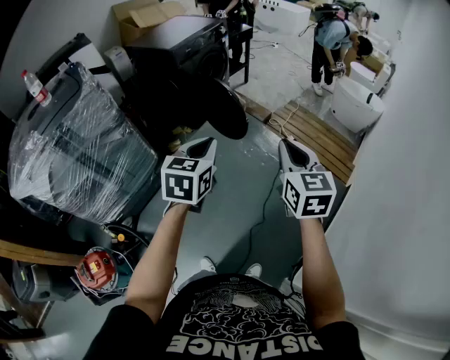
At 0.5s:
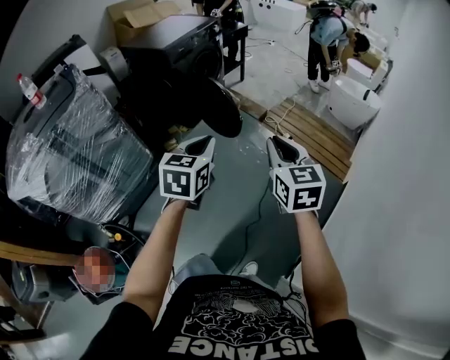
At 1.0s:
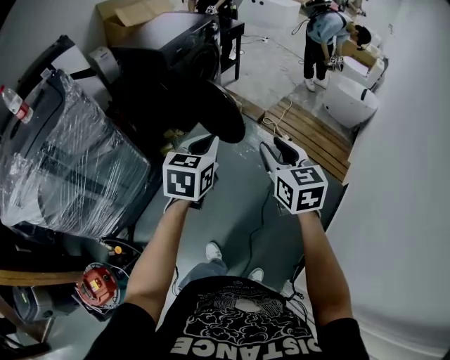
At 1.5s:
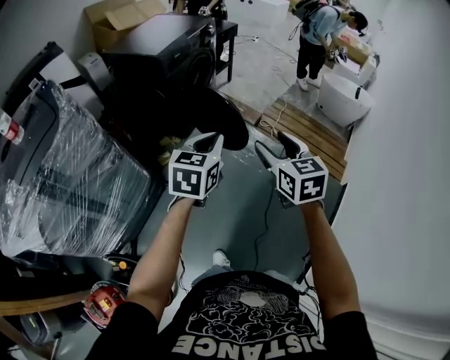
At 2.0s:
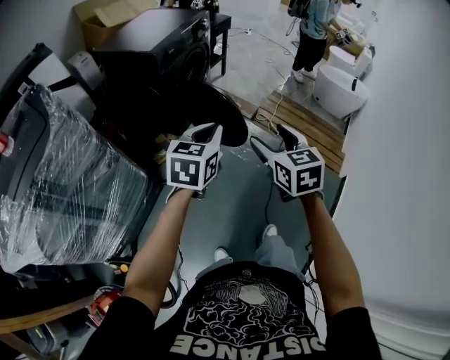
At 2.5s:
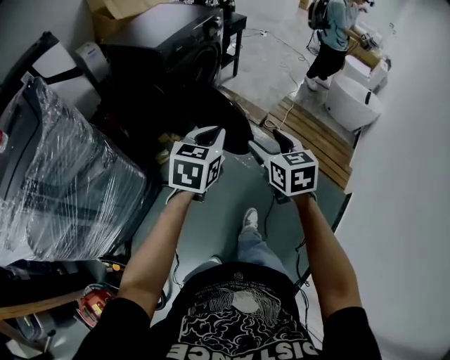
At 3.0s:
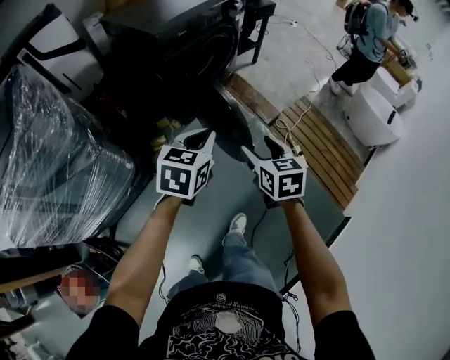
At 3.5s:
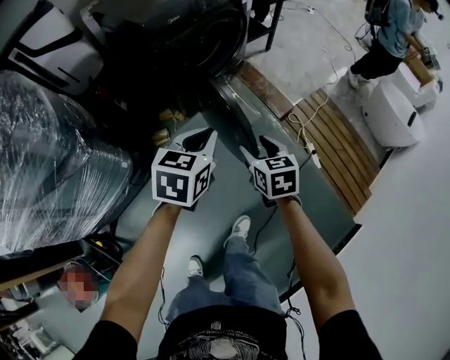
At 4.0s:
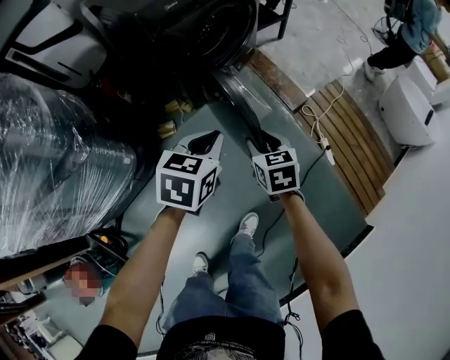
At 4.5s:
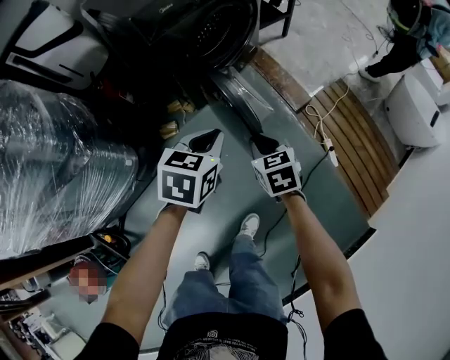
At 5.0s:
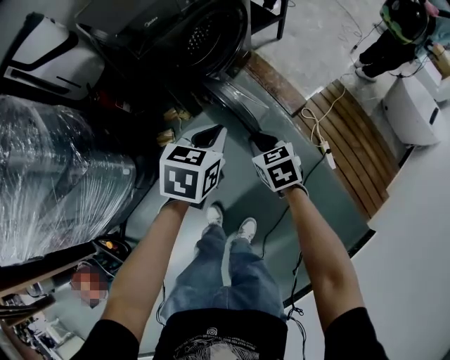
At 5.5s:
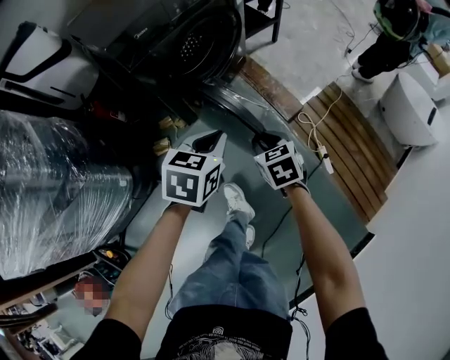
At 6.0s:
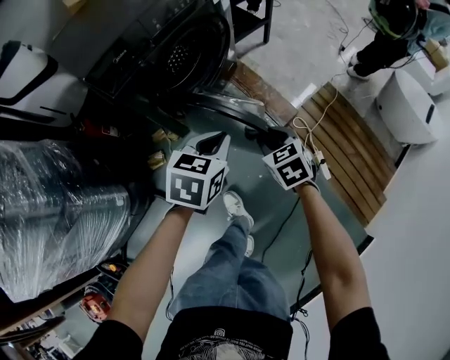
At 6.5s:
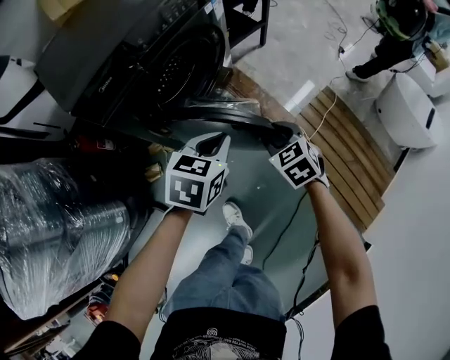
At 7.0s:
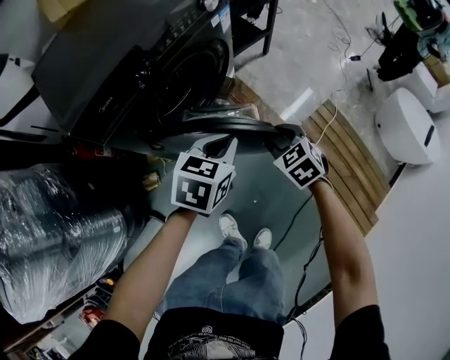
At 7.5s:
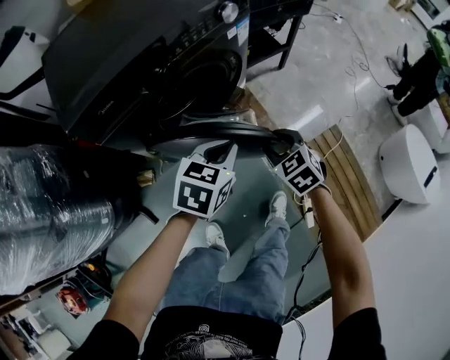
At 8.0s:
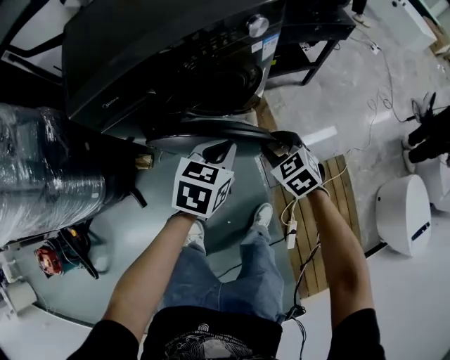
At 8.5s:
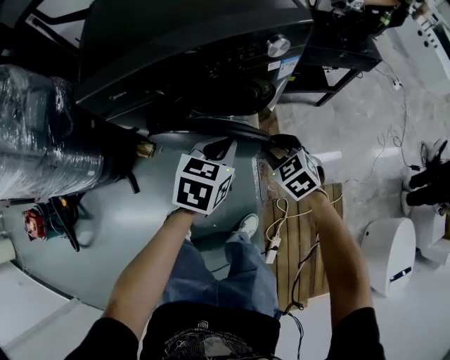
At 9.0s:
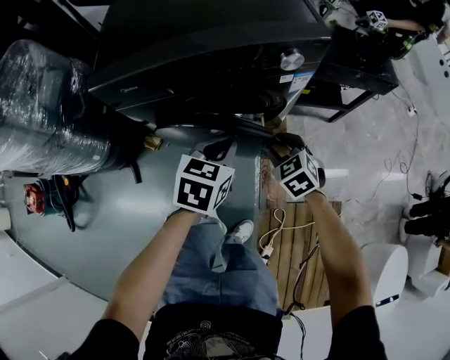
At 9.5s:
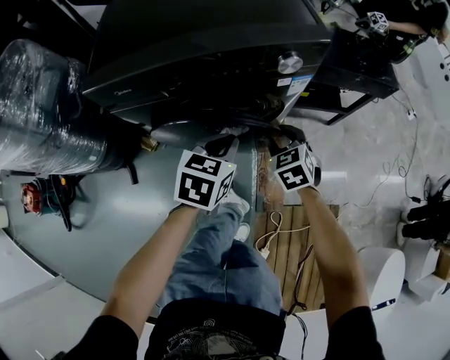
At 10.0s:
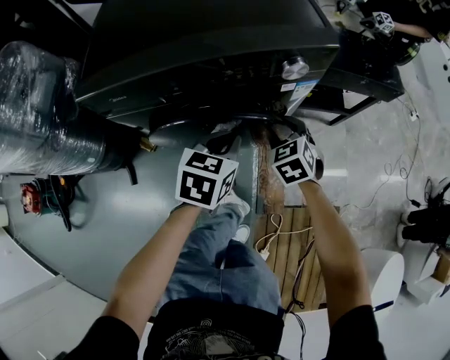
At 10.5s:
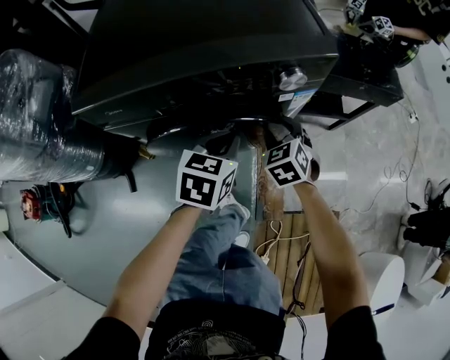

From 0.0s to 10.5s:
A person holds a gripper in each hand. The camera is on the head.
From 0.0s to 2.0s: Both grippers travel together forward and to the left, some 20 cm. The right gripper opens.
From 2.0s to 4.0s: The right gripper shifts roughly 40 cm downward and forward, rotates some 20 degrees, and closes up, while the left gripper goes some 30 cm forward and downward, and turns by about 20 degrees.
From 4.0s to 6.5s: The two grippers go approximately 25 cm forward and to the right. The right gripper turns by some 20 degrees.
From 6.5s to 8.5s: The left gripper changes place by some 20 cm, and rotates some 40 degrees; the right gripper shifts by approximately 25 cm, and turns by about 40 degrees.
From 8.5s to 10.5s: The left gripper travels forward by about 10 cm. The right gripper travels forward by roughly 15 cm.

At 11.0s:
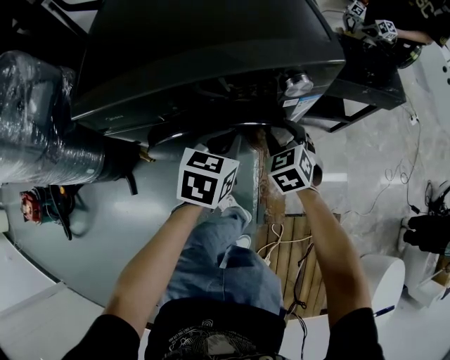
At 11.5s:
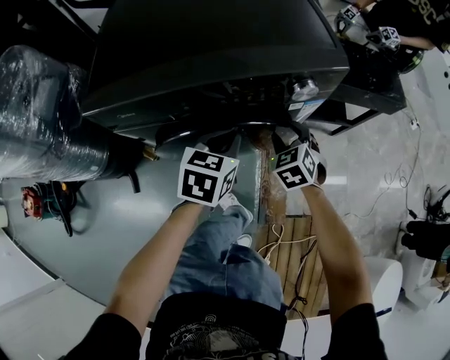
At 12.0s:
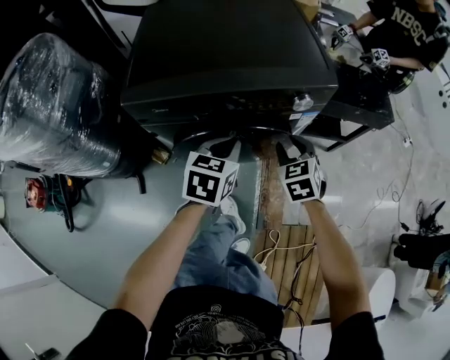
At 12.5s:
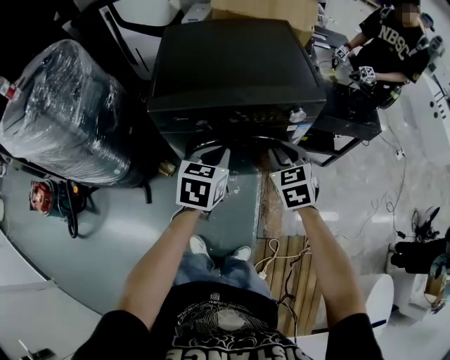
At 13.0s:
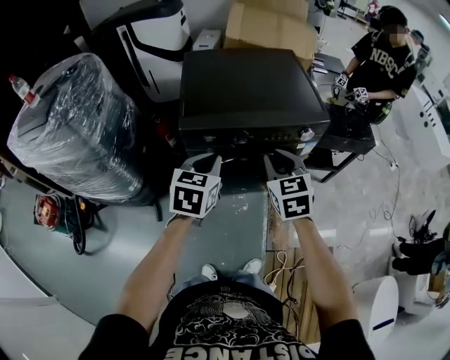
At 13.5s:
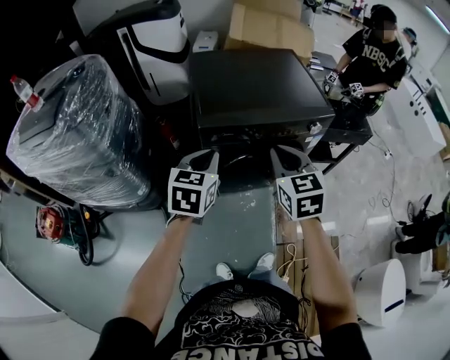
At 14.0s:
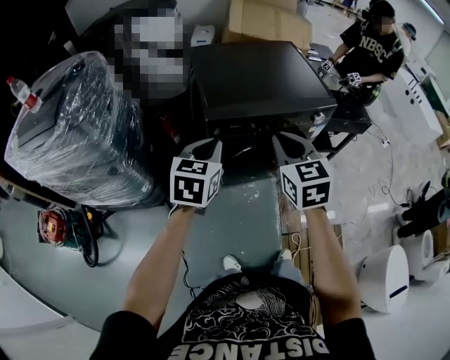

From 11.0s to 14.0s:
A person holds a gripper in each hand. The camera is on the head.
From 11.0s to 12.5s: The left gripper goes approximately 20 cm upward, backward and to the left. Meanwhile the right gripper goes some 25 cm upward and backward.
From 12.5s to 14.0s: The left gripper shifts some 25 cm to the left and upward. The right gripper travels to the left, upward and backward by roughly 30 cm.

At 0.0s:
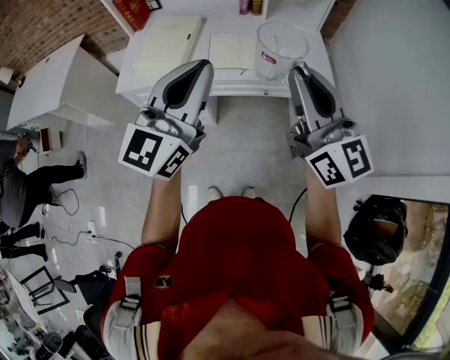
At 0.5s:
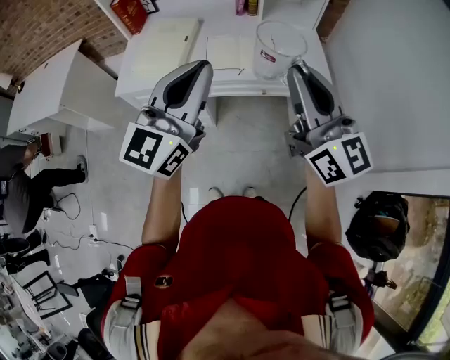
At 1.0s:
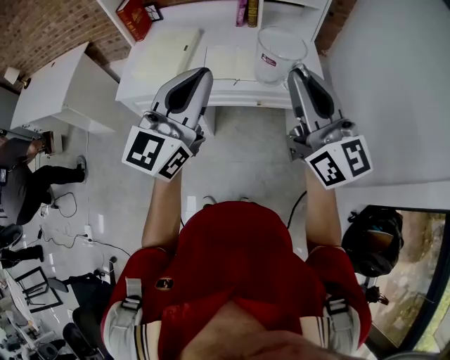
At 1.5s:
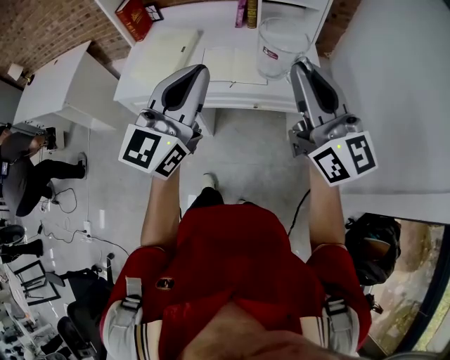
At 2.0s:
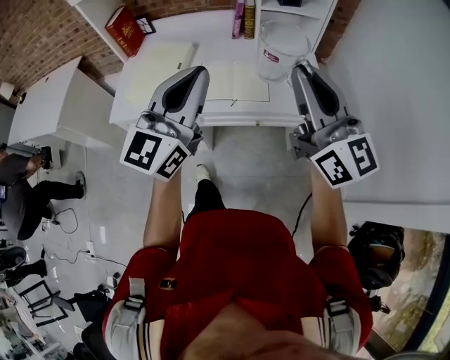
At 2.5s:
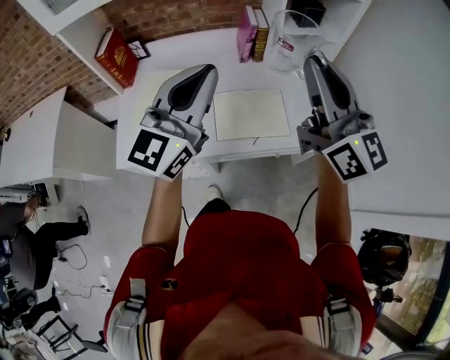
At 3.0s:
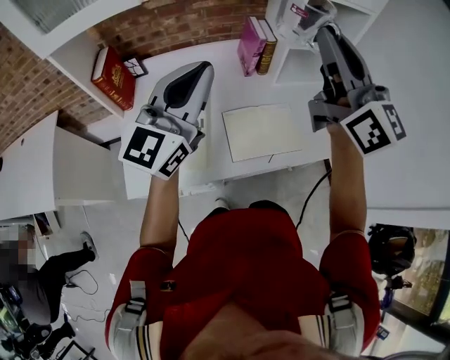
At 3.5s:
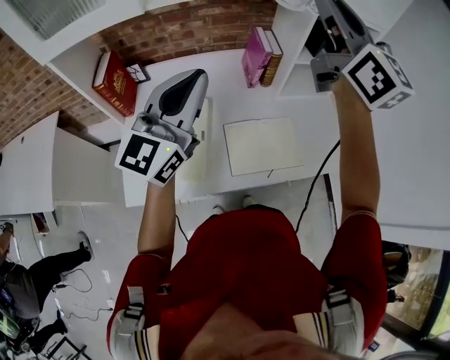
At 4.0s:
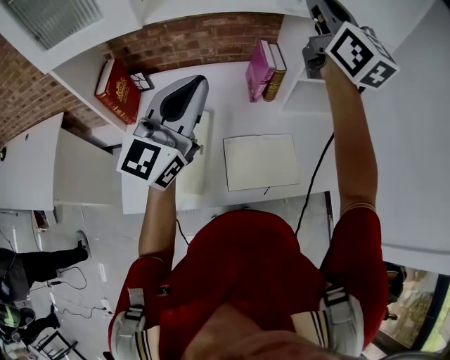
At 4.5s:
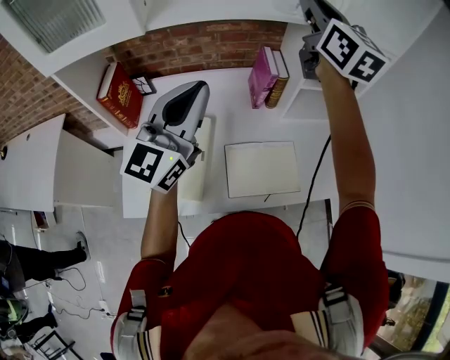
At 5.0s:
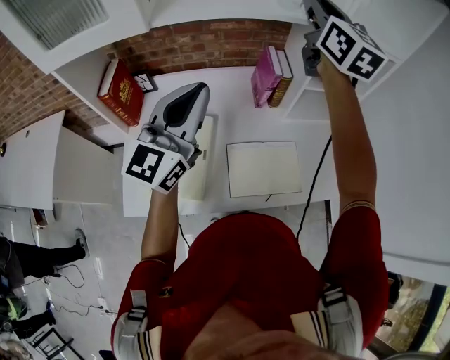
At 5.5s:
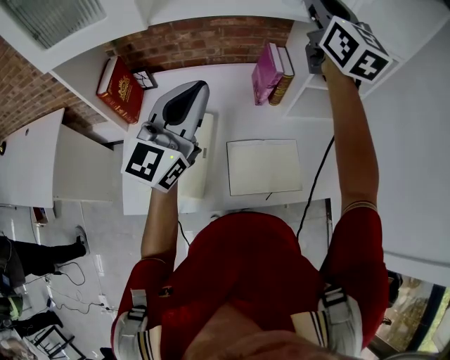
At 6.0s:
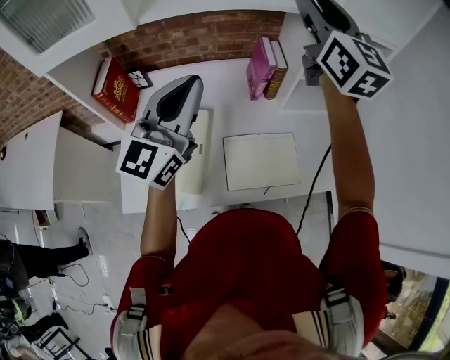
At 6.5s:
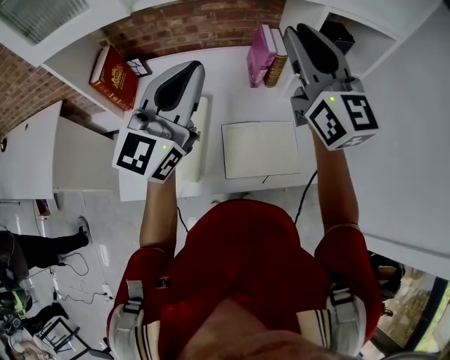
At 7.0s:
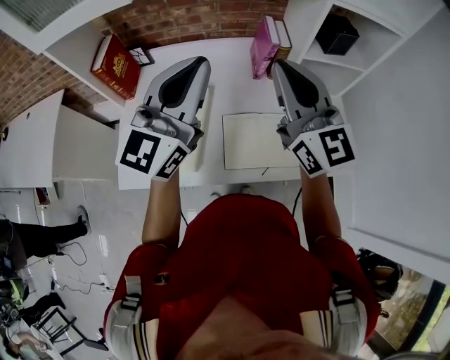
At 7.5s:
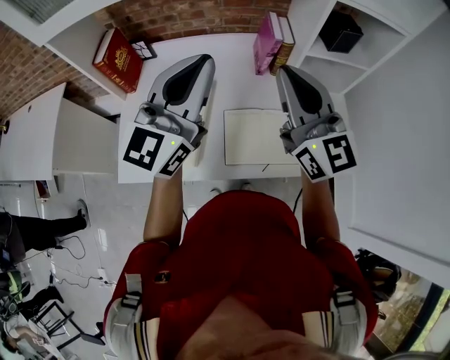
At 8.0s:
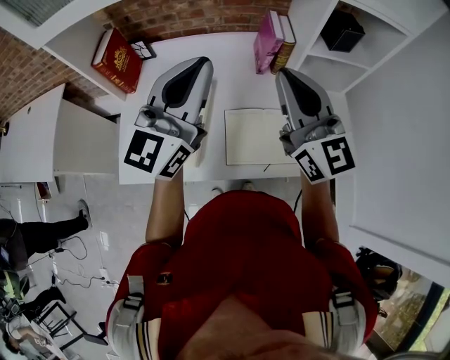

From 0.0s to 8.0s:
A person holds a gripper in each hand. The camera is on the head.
From 0.0s to 2.0s: The grippers both shift forward by some 10 cm.
From 2.0s to 4.0s: Both grippers travel together forward and to the left, some 40 cm.
From 4.0s to 6.0s: The right gripper opens up.
From 6.0s to 8.0s: The right gripper is displaced backward and downward by about 20 cm, and closes its fingers.

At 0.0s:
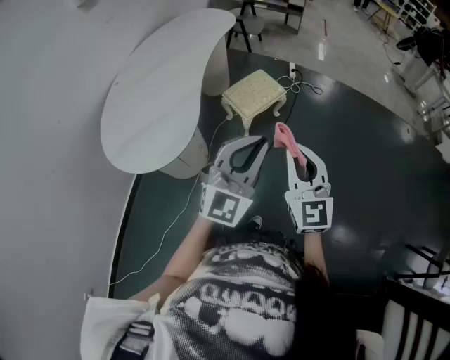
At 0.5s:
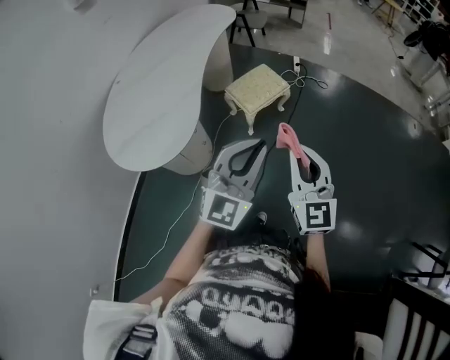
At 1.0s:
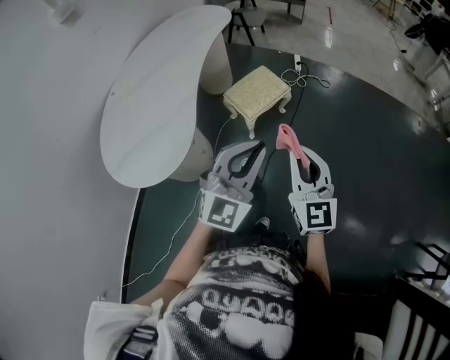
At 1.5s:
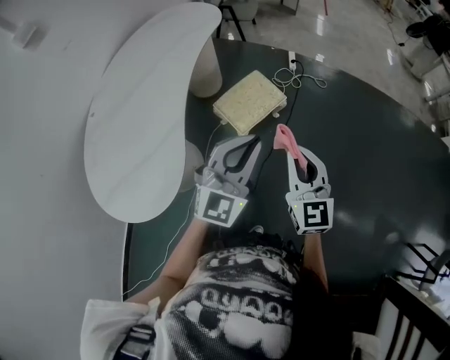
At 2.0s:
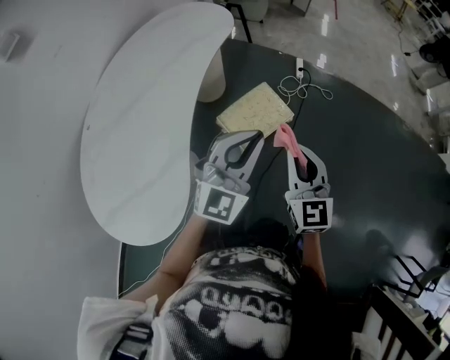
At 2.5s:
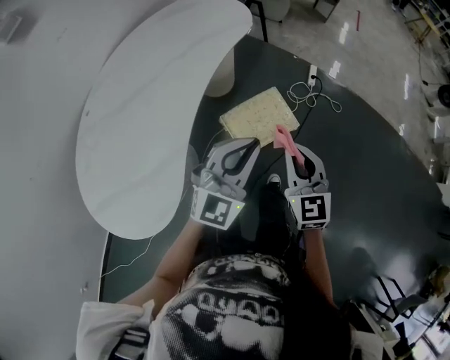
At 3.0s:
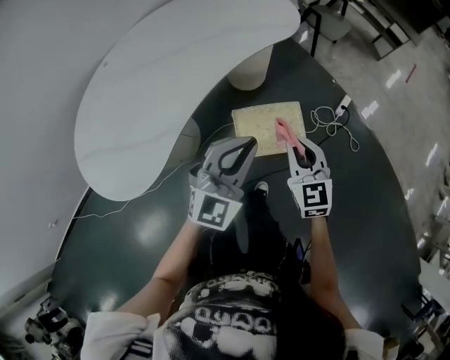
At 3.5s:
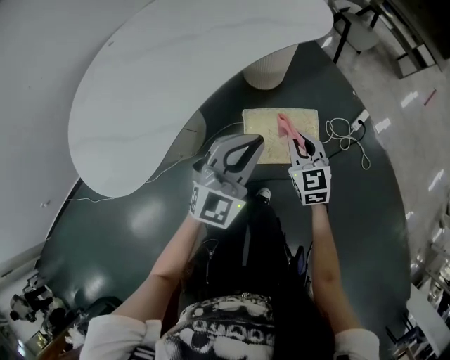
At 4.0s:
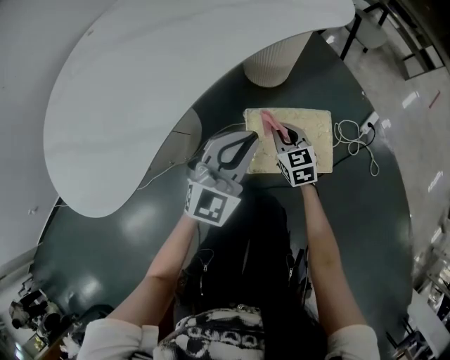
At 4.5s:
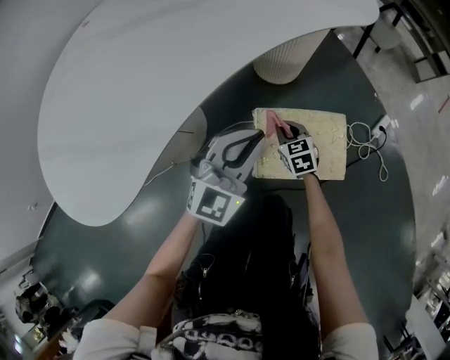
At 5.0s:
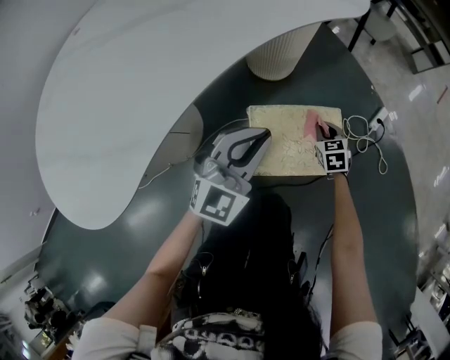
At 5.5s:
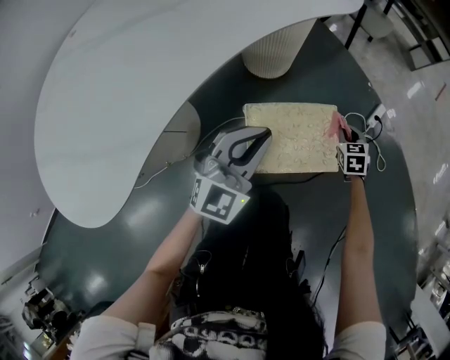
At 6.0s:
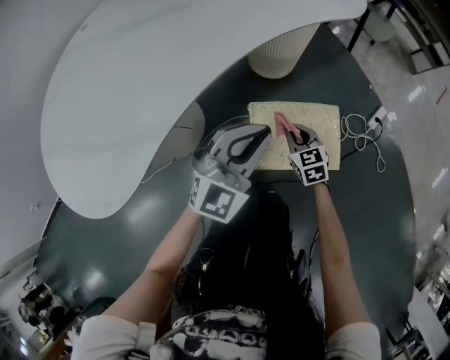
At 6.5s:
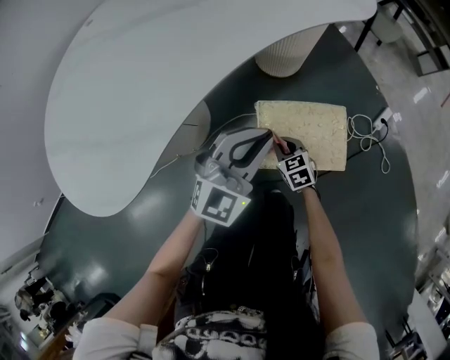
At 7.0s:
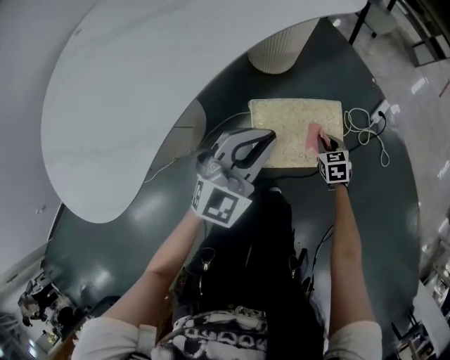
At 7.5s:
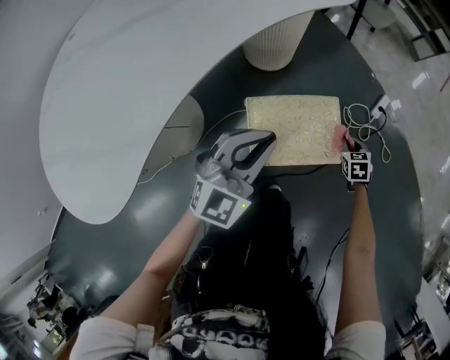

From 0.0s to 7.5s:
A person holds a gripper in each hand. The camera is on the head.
From 0.0s to 2.0s: The grippers both shift forward by roughly 35 cm.
From 2.0s to 4.0s: The right gripper heads downward, covering roughly 40 cm, and rotates approximately 50 degrees; the left gripper shifts approximately 30 cm downward, and changes its angle by some 40 degrees.
From 4.0s to 5.5s: The right gripper moves to the right, some 25 cm, and changes its angle by approximately 30 degrees. Meanwhile the left gripper moves roughly 5 cm.
From 5.5s to 7.5s: The right gripper is displaced backward by roughly 5 cm, and travels to the left and back again, roughly 25 cm each way.
